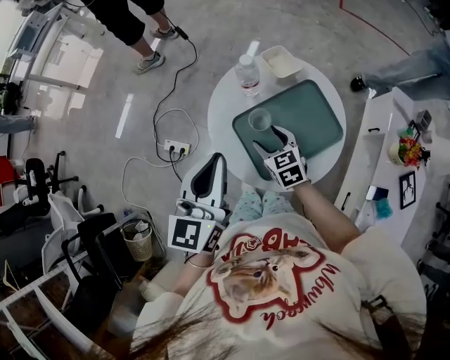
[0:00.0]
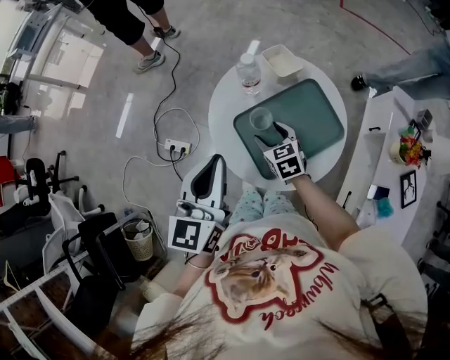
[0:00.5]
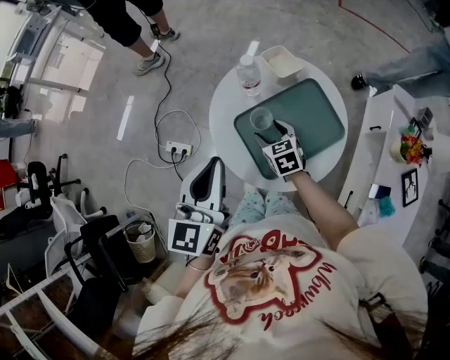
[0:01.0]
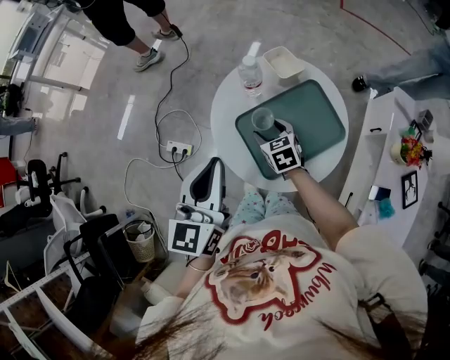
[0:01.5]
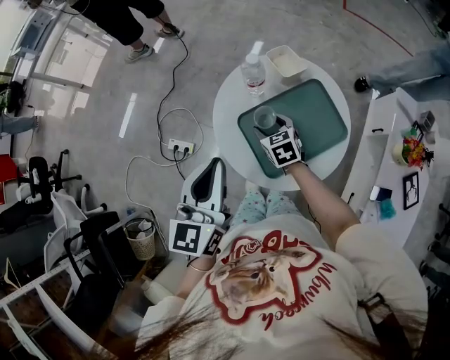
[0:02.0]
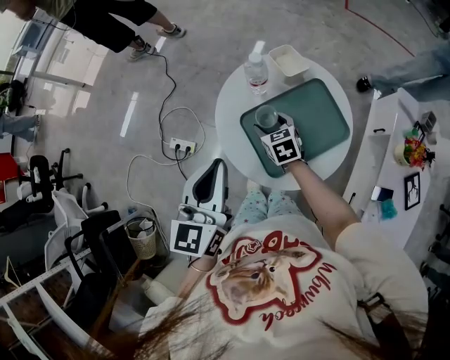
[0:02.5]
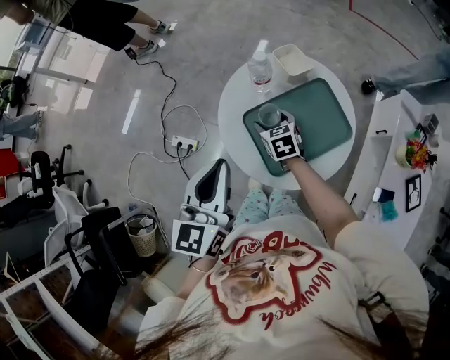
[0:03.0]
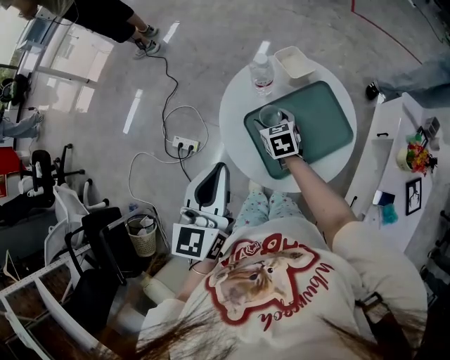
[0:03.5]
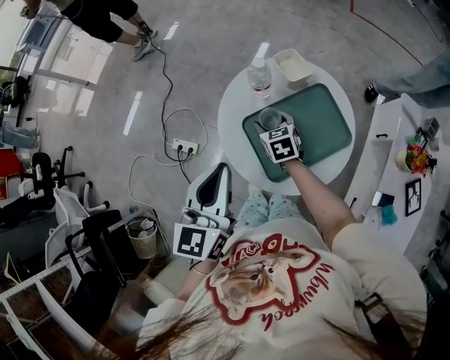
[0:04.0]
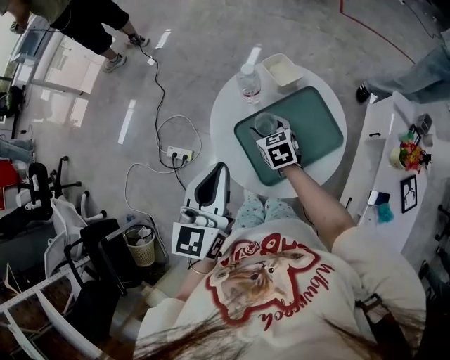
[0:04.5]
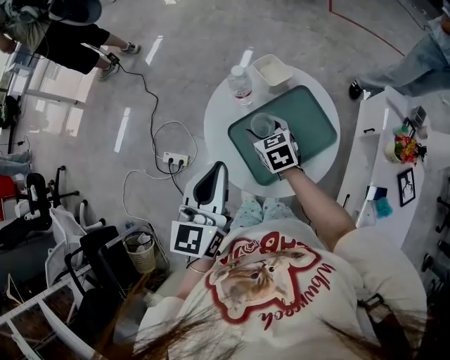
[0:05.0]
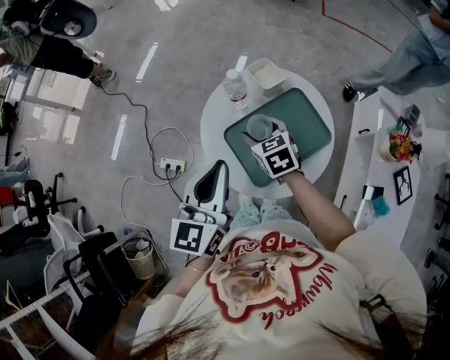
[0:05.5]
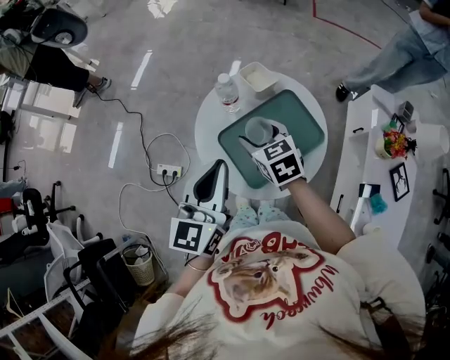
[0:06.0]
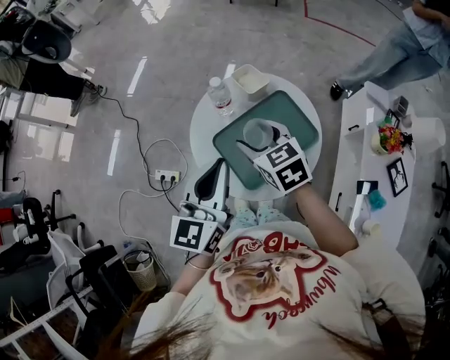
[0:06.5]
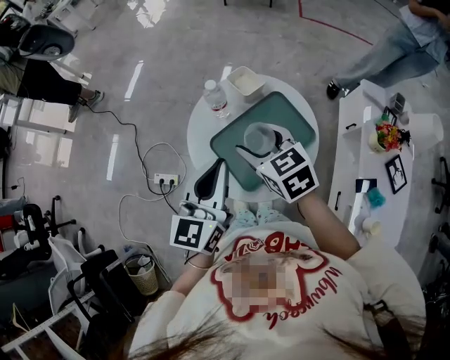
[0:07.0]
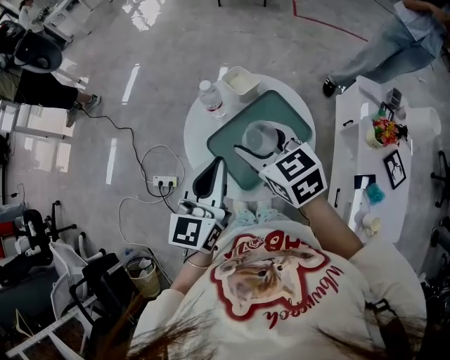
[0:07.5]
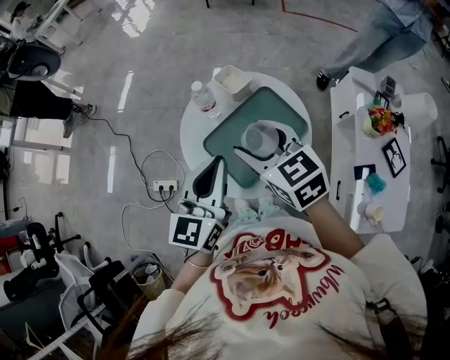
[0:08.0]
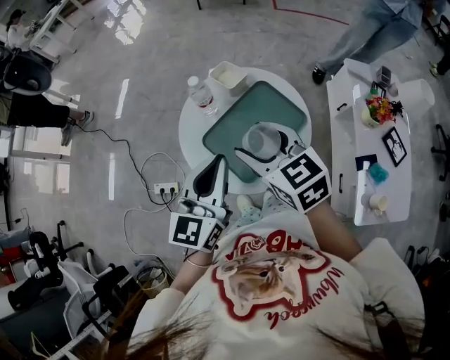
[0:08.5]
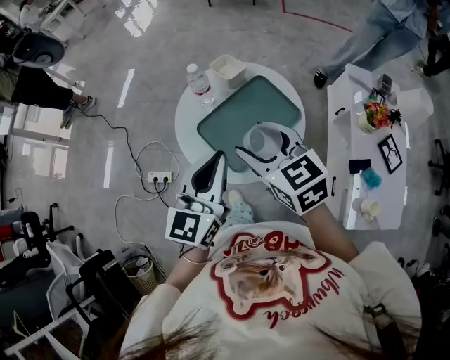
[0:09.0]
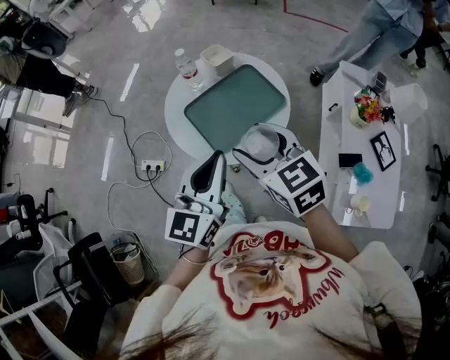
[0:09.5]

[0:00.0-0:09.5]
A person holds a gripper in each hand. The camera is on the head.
0:00.0 to 0:02.0: The right gripper shifts by about 5 cm.
0:02.0 to 0:04.0: The grippers make only small movements.
0:04.0 to 0:05.5: The right gripper heads upward, covering about 10 cm.
0:05.5 to 0:07.5: The right gripper moves upward, about 15 cm.
0:07.5 to 0:09.5: The right gripper heads backward, covering approximately 15 cm. The left gripper heads backward and to the right, covering approximately 15 cm.

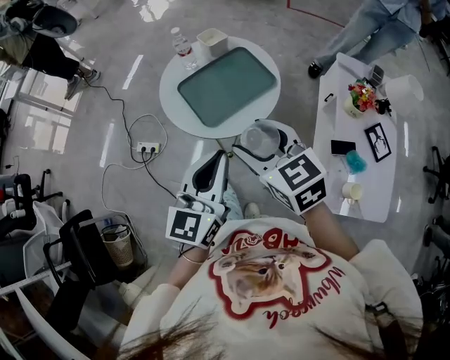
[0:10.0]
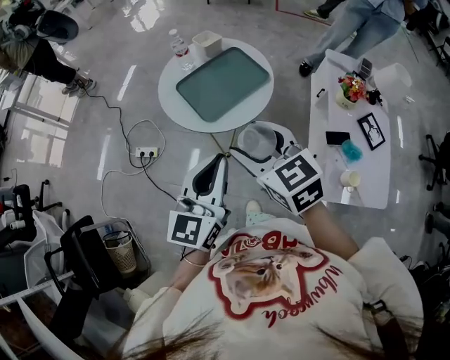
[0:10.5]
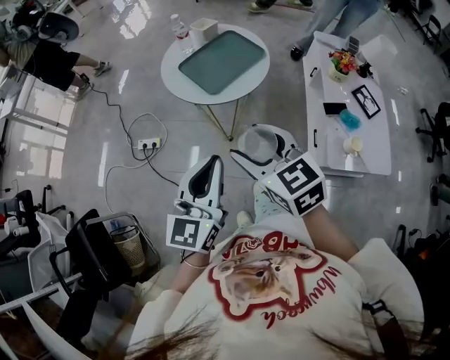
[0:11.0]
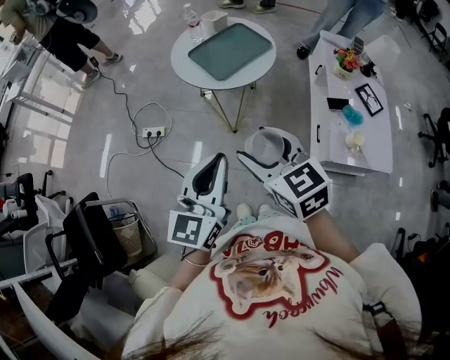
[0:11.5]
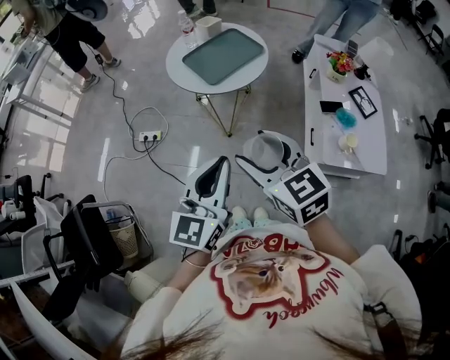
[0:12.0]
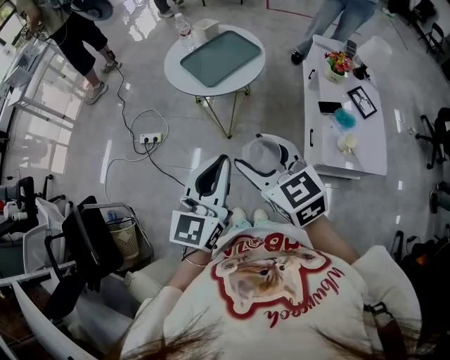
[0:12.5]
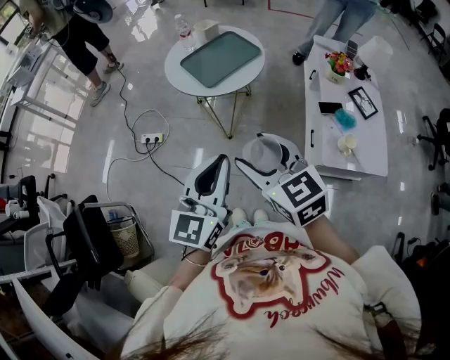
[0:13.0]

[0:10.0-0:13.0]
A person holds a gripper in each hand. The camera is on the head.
0:10.0 to 0:11.5: The right gripper travels backward by roughly 25 cm; the left gripper travels backward and to the left by some 25 cm.
0:11.5 to 0:13.0: The left gripper moves to the right, about 5 cm. The right gripper moves some 5 cm.

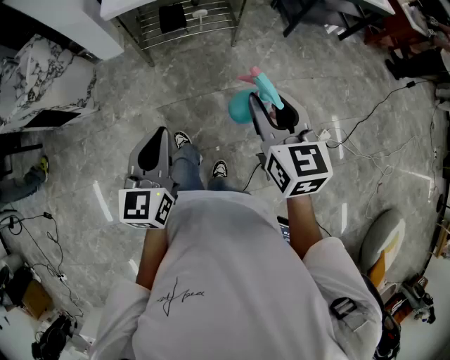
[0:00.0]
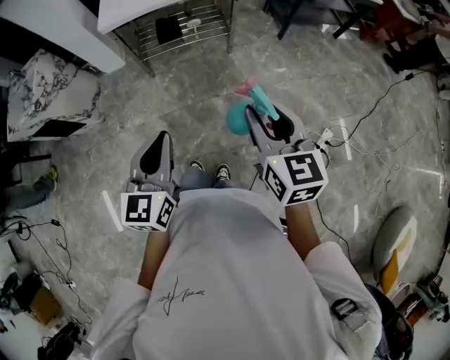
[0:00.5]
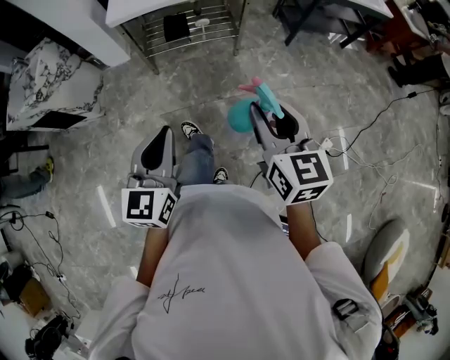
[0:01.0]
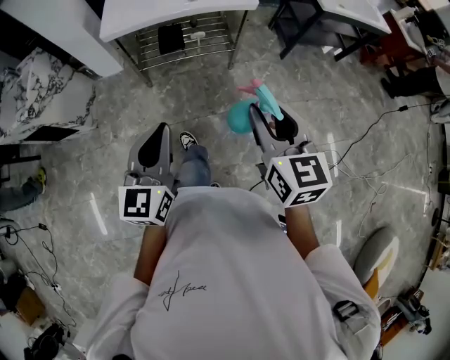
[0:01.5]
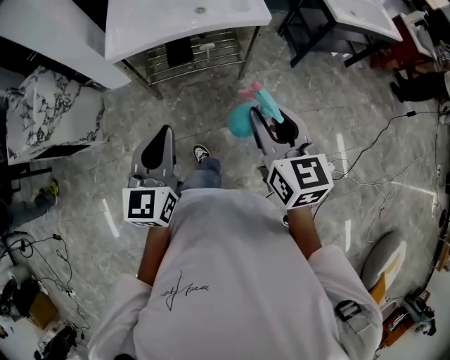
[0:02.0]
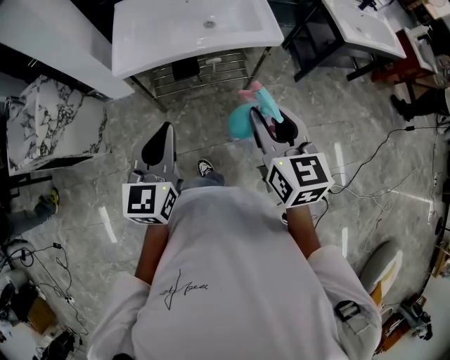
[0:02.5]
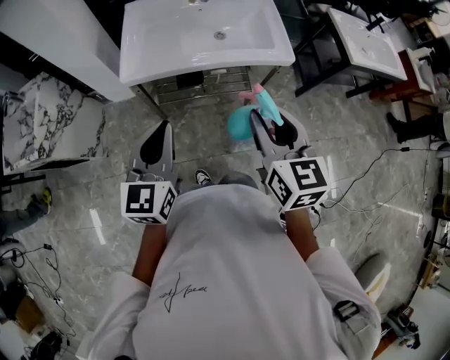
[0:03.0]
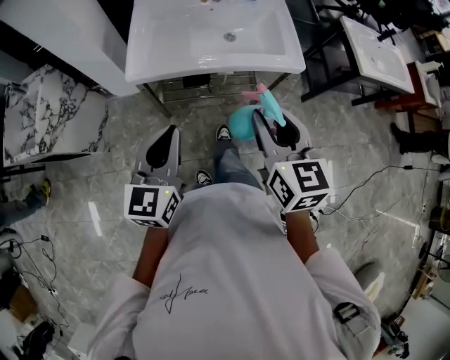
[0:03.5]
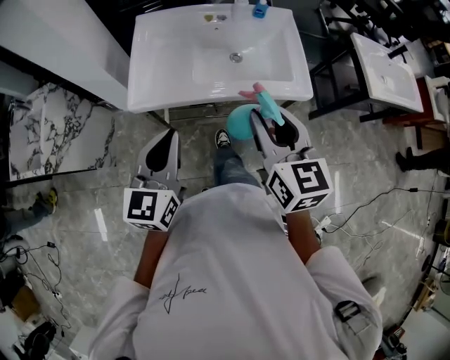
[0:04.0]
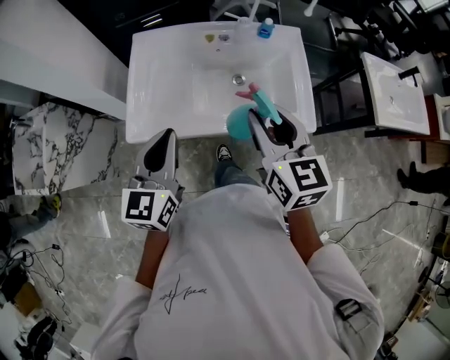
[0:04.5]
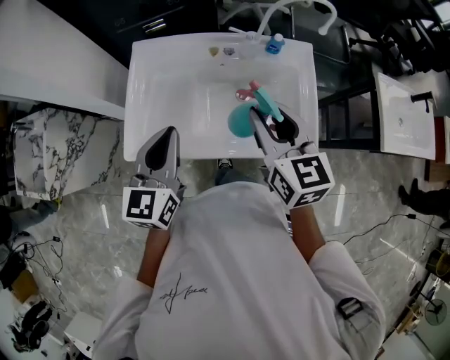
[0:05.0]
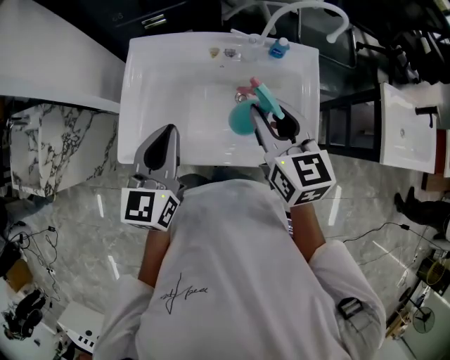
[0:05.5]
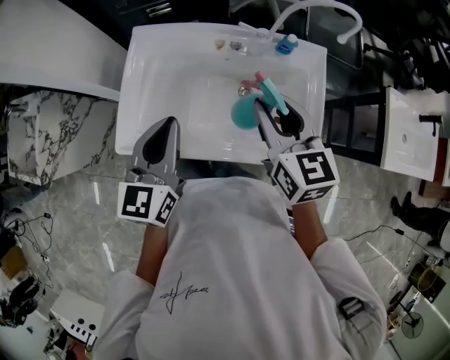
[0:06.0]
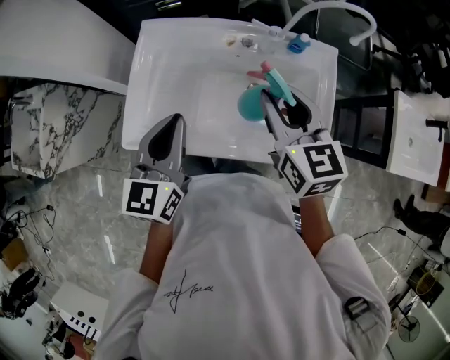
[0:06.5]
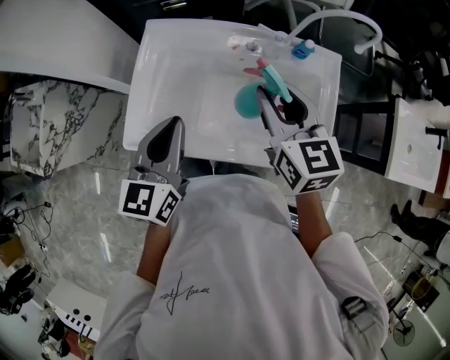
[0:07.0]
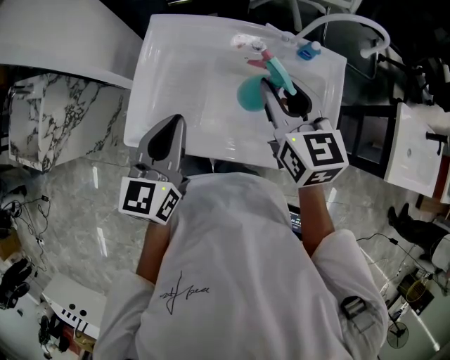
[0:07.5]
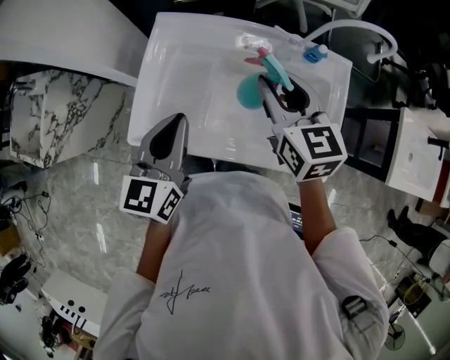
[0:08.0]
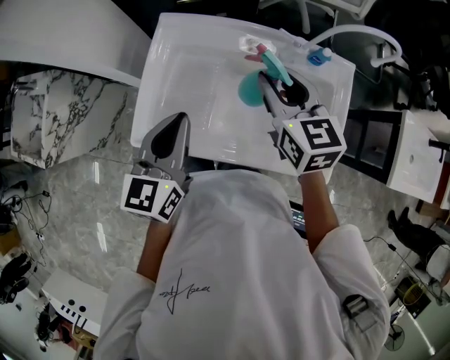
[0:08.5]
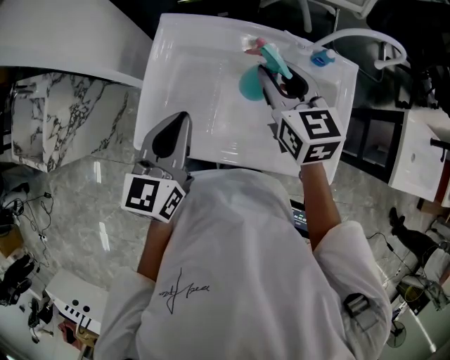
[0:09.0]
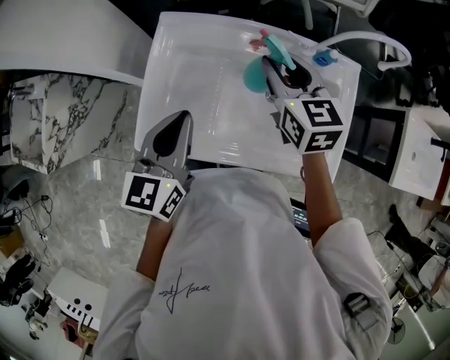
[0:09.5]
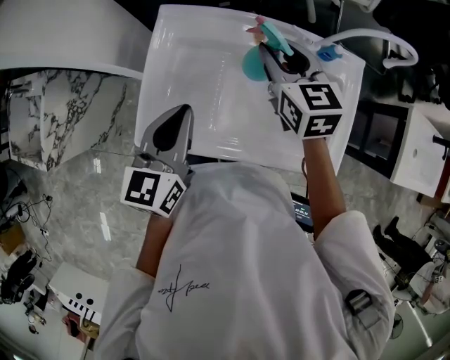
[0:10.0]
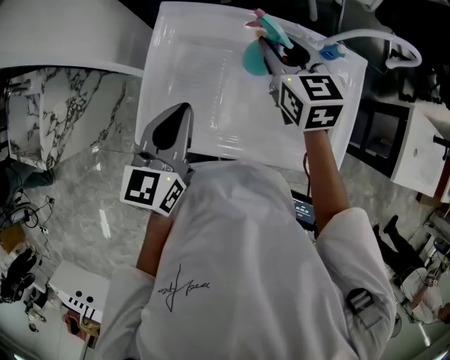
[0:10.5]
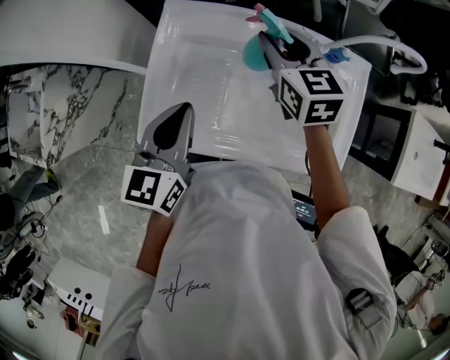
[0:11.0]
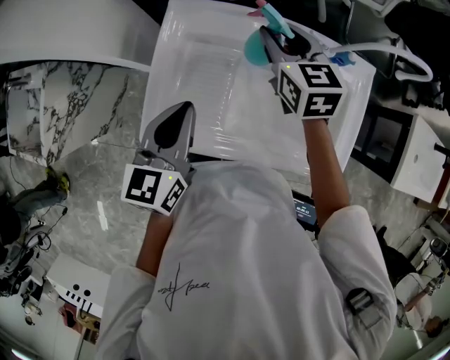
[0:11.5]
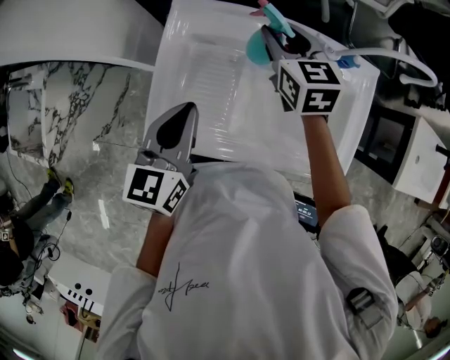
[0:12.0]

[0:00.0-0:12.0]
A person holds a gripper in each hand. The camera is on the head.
0:00.0 to 0:02.0: Both grippers travel together forward, some 20 cm.
0:02.0 to 0:04.0: Both grippers move forward, approximately 30 cm.
0:04.0 to 0:06.0: The two grippers go some 25 cm forward.
0:06.0 to 0:08.0: The right gripper is displaced forward and to the left by about 10 cm.
0:08.0 to 0:10.0: The right gripper moves forward, some 10 cm.
0:10.0 to 0:12.0: The right gripper moves forward, about 5 cm.

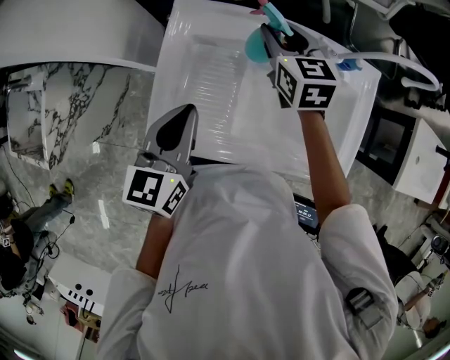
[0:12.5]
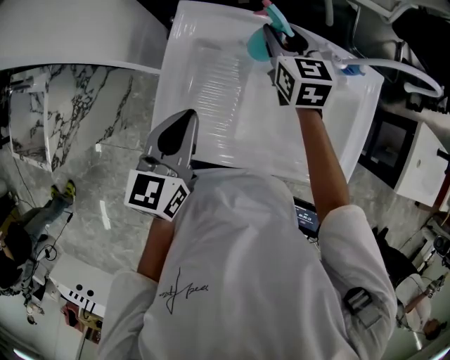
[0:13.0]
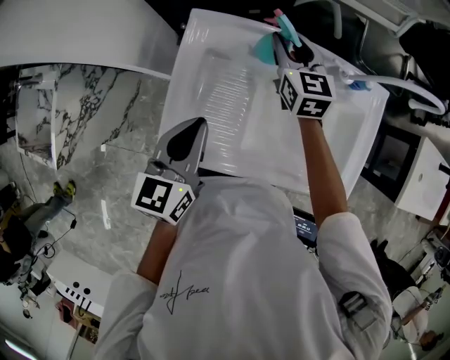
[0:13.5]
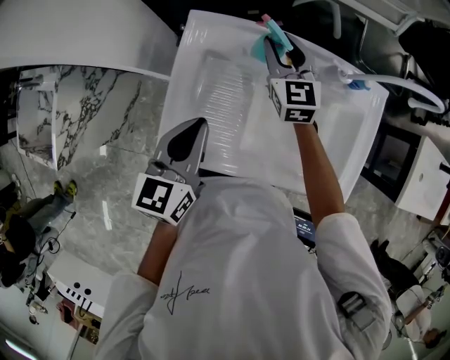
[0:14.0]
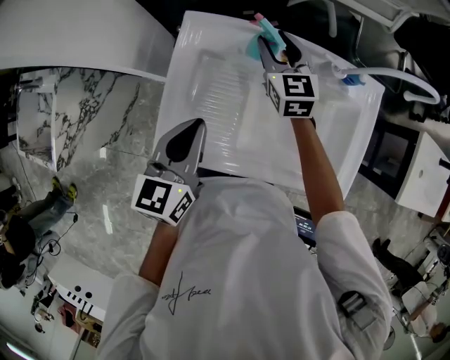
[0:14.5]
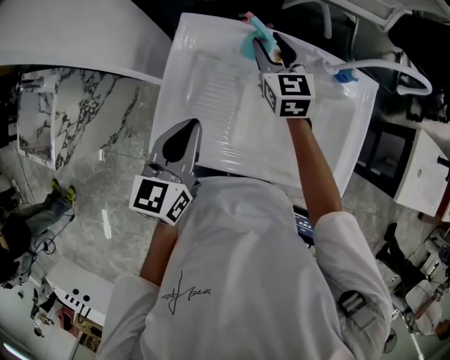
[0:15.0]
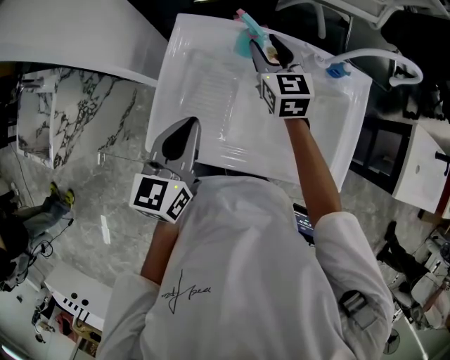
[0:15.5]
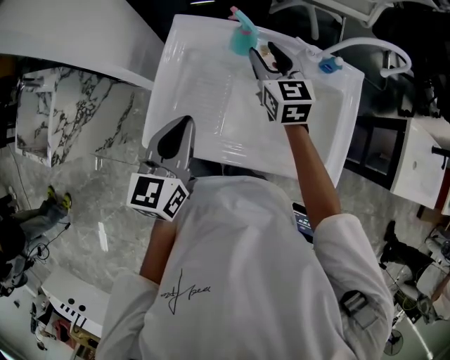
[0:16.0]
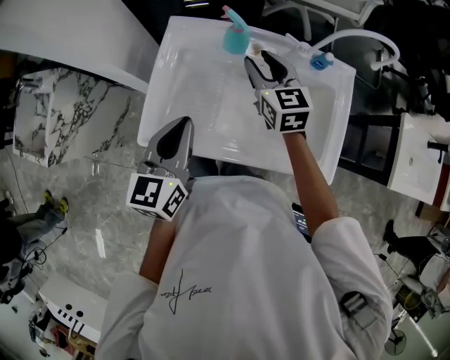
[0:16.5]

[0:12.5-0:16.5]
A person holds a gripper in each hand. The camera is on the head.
0:12.5 to 0:14.5: There are only small adjustments of the grippers.
0:14.5 to 0:16.5: The left gripper goes some 5 cm backward. The right gripper moves backward, some 10 cm.
